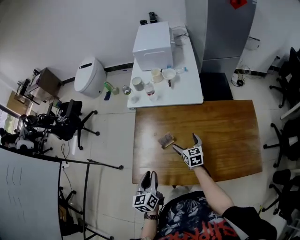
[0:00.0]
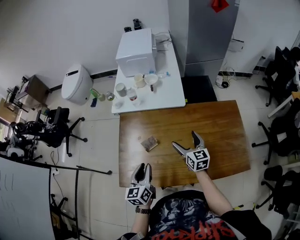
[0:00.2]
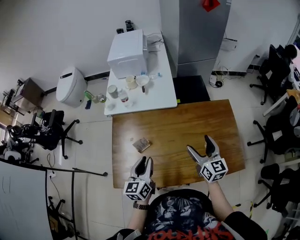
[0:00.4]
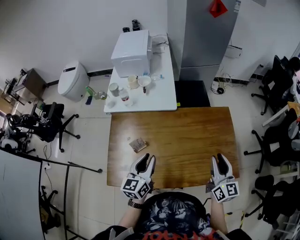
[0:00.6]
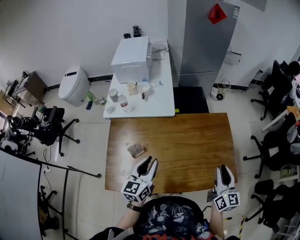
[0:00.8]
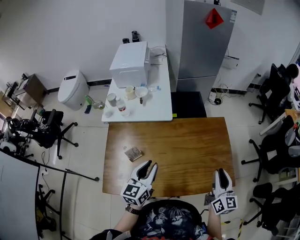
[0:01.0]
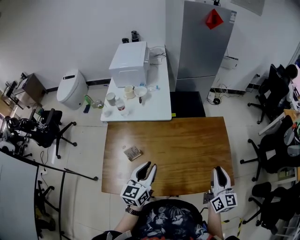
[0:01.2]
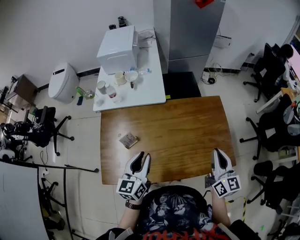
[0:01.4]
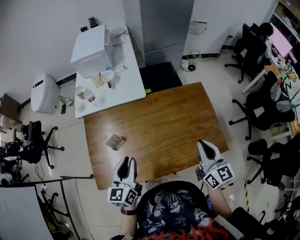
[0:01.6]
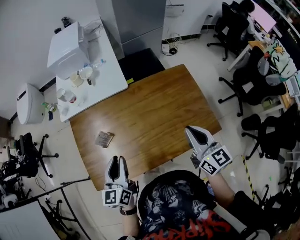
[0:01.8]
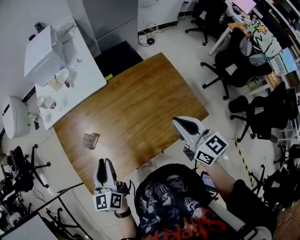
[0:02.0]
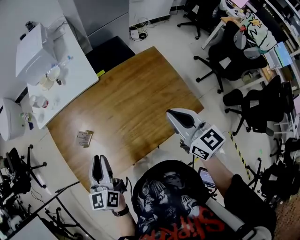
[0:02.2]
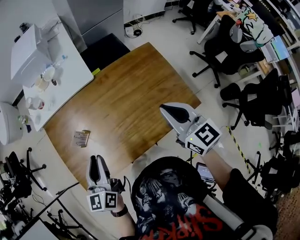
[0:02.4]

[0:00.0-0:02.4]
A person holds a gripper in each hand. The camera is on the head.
0:00.0 to 0:01.2: The left gripper shifts by approximately 25 cm, and rotates about 30 degrees; the right gripper shifts by some 40 cm, swivels about 40 degrees, and closes up.
0:01.2 to 0:02.4: There are only small adjustments of the grippers.

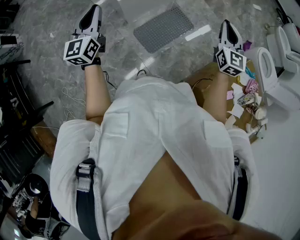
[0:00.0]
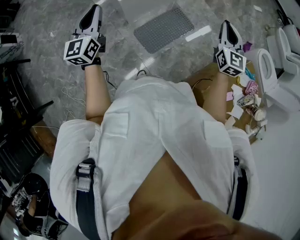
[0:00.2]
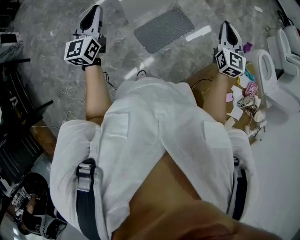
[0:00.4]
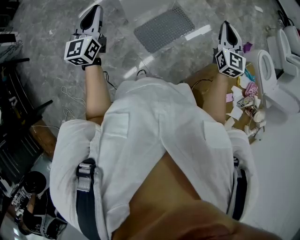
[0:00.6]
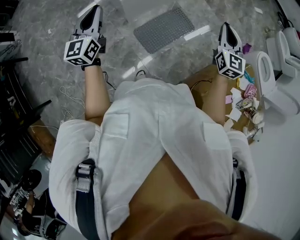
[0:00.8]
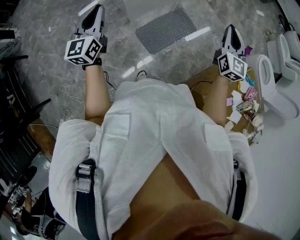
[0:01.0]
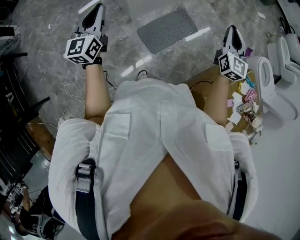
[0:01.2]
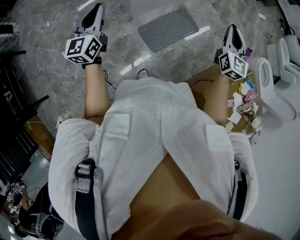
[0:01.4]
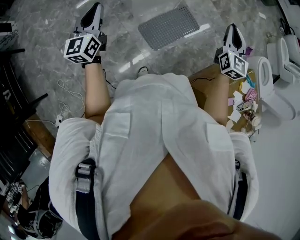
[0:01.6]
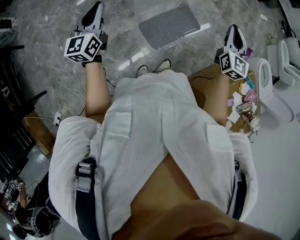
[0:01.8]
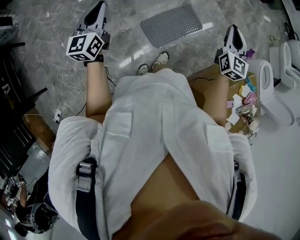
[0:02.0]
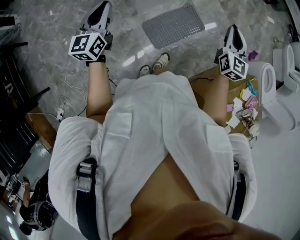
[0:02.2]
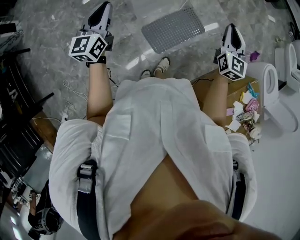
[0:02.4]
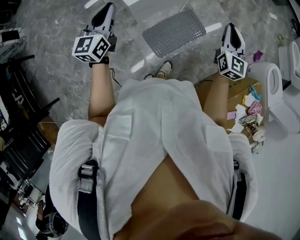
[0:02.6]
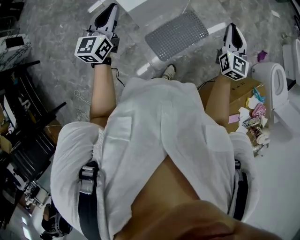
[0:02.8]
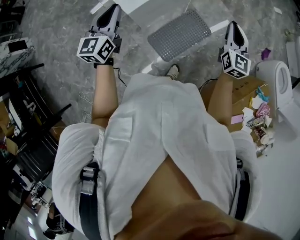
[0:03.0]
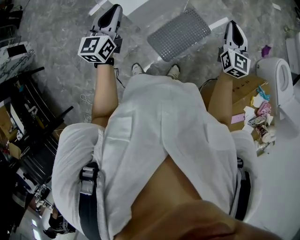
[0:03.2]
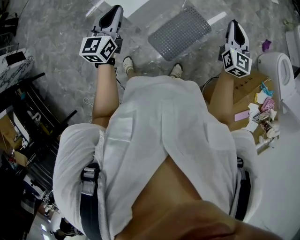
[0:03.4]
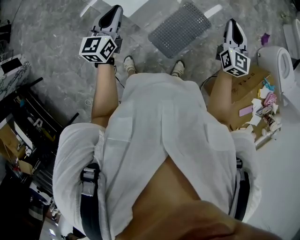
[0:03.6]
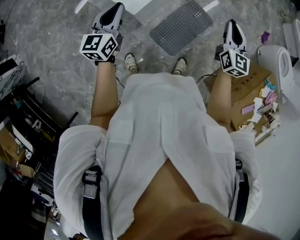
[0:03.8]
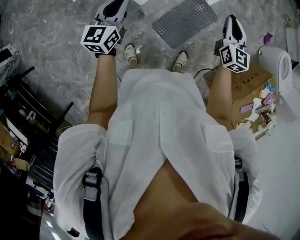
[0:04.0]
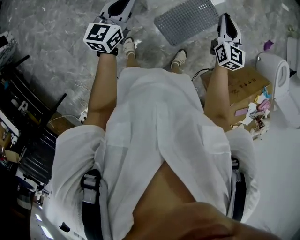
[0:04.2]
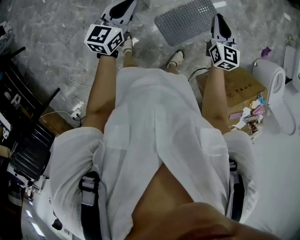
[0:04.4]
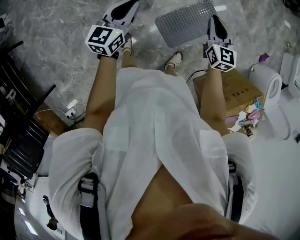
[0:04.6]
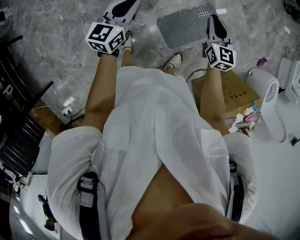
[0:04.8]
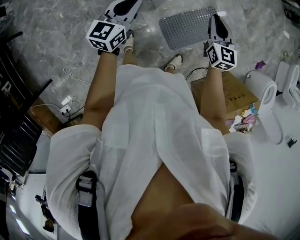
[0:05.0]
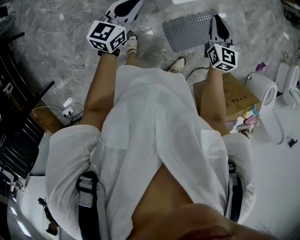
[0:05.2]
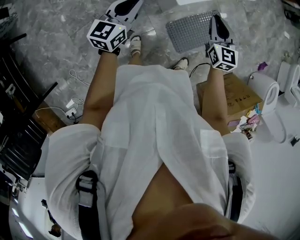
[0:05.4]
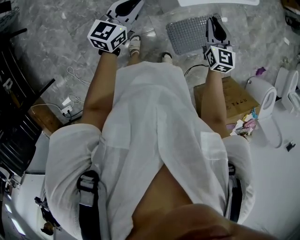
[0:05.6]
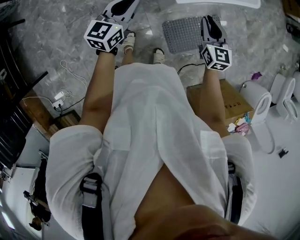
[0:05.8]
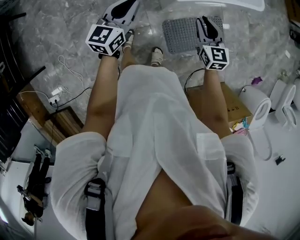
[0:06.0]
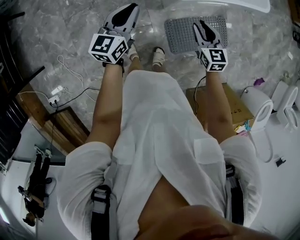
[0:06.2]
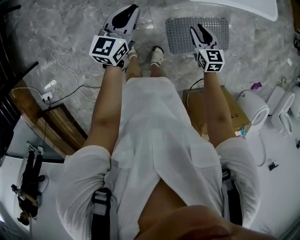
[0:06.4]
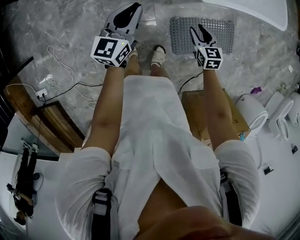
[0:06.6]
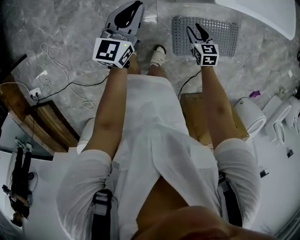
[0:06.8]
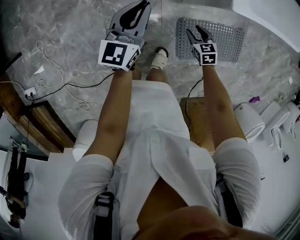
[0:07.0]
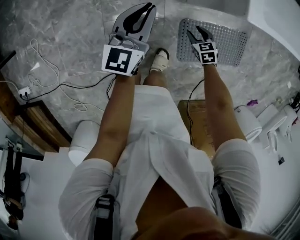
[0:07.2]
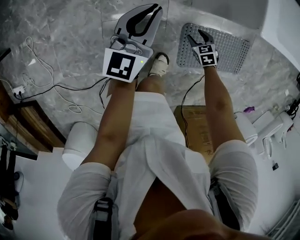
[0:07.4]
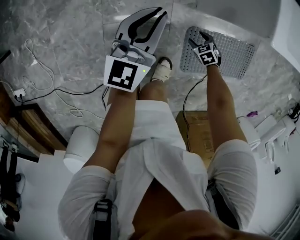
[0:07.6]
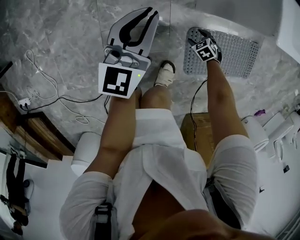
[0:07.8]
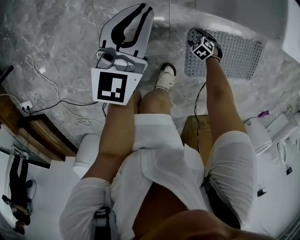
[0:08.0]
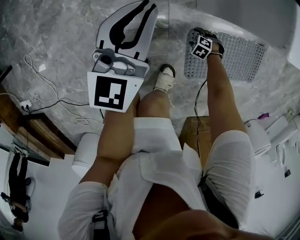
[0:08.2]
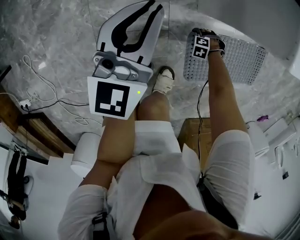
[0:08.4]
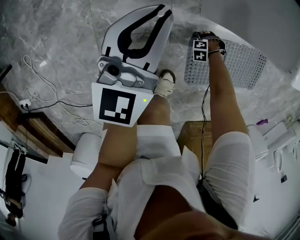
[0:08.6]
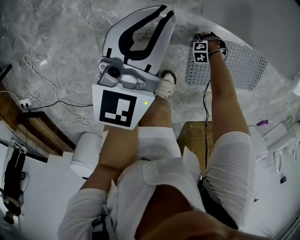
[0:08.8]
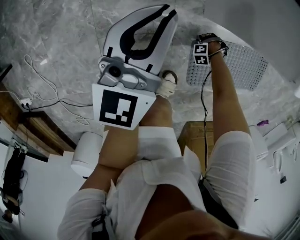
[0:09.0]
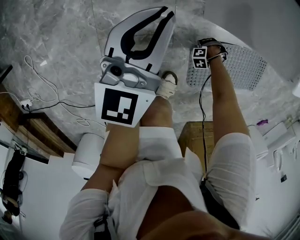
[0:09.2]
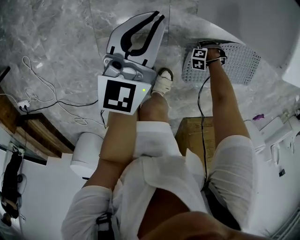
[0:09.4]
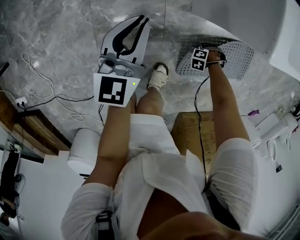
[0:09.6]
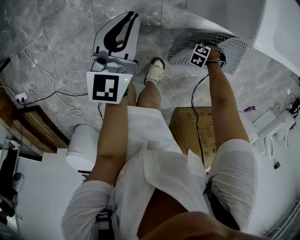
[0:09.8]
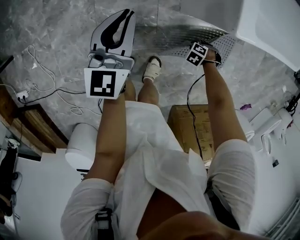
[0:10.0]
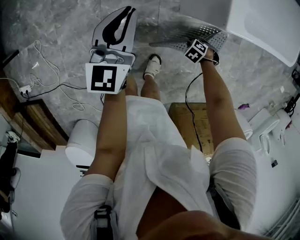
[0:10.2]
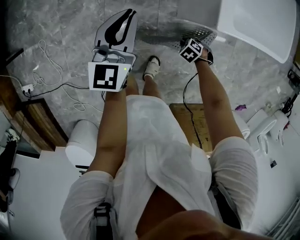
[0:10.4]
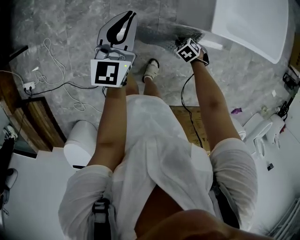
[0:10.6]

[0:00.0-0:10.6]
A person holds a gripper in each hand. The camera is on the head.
0:00.0 to 0:01.6: Both grippers move to the left, some 10 cm.
0:01.6 to 0:03.0: The two grippers go approximately 20 cm forward and to the right.
0:03.0 to 0:04.6: Both grippers travel together to the left and downward, roughly 30 cm. The right gripper swivels roughly 20 degrees.
0:04.6 to 0:06.0: The two grippers go approximately 10 cm to the left. The right gripper rotates approximately 20 degrees.
0:06.0 to 0:07.6: The right gripper travels downward by some 70 cm, tilts its fingers roughly 50 degrees downward, and opens up. The left gripper moves downward, approximately 40 cm.
0:07.6 to 0:09.0: The right gripper heads downward, covering roughly 20 cm, and rotates around the line of its fingers by approximately 70 degrees, counterclockwise from behind; the left gripper moves approximately 10 cm.
0:09.0 to 0:10.6: The left gripper moves upward, roughly 30 cm; the right gripper moves upward, some 50 cm, rotates around the line of its fingers by some 50 degrees, clockwise from behind, and closes up.

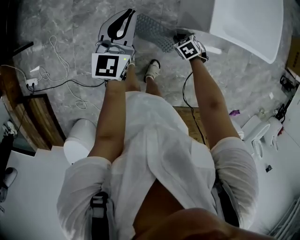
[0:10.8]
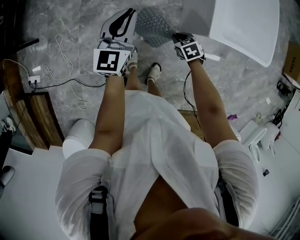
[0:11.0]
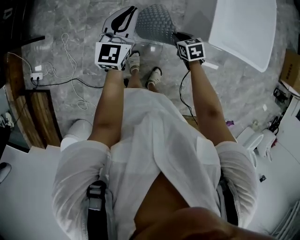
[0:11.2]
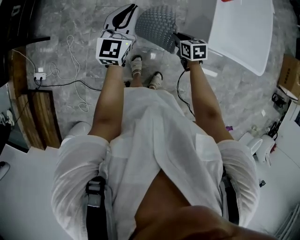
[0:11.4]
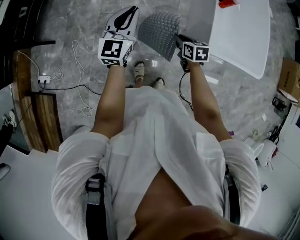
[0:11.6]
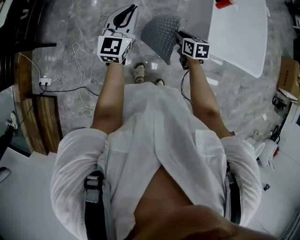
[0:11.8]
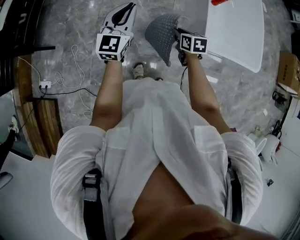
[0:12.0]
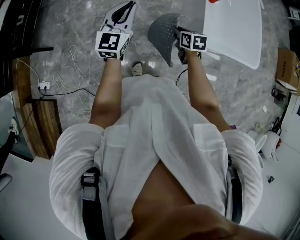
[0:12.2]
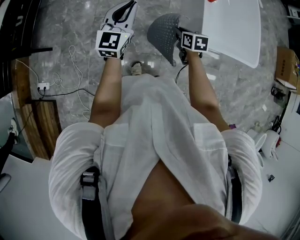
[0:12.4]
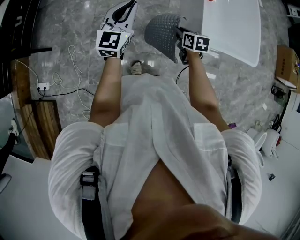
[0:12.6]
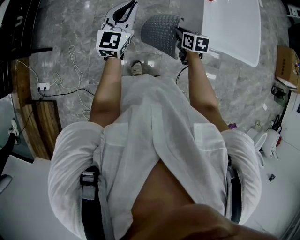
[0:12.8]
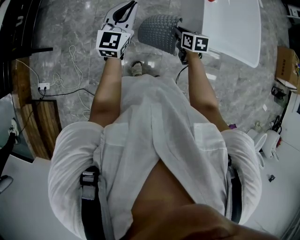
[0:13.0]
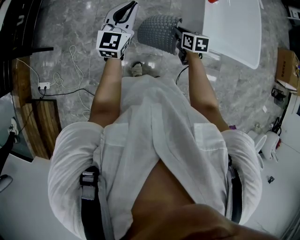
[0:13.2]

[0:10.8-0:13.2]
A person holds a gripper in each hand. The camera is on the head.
0:10.8 to 0:12.0: Both grippers travel together upward, approximately 25 cm. The right gripper turns by approximately 40 degrees.
0:12.0 to 0:13.2: The grippers stay close to where they were, moving slightly.

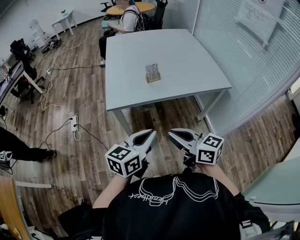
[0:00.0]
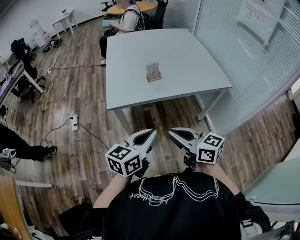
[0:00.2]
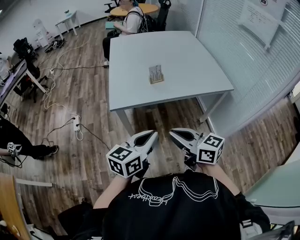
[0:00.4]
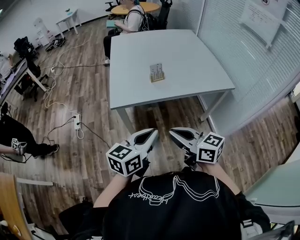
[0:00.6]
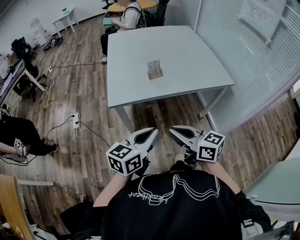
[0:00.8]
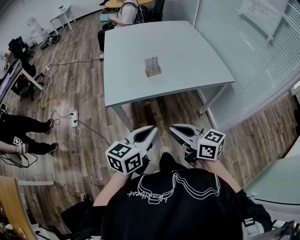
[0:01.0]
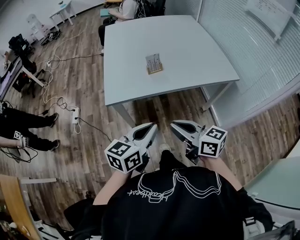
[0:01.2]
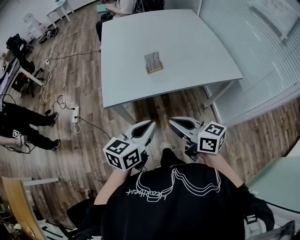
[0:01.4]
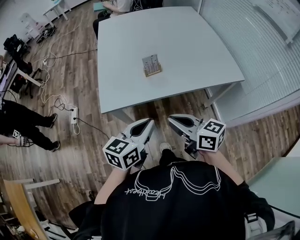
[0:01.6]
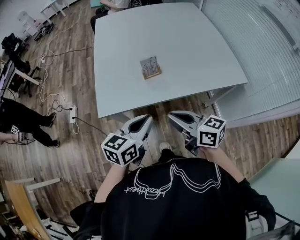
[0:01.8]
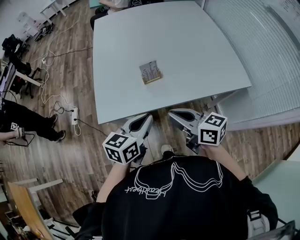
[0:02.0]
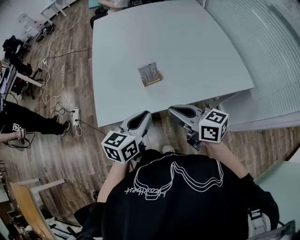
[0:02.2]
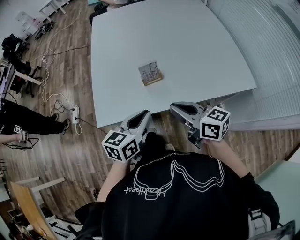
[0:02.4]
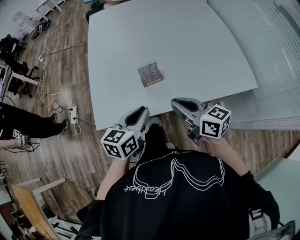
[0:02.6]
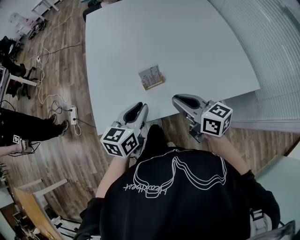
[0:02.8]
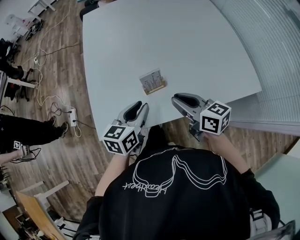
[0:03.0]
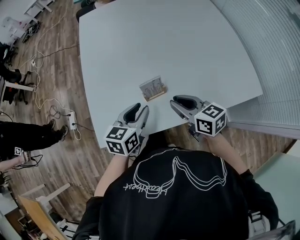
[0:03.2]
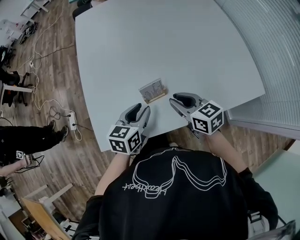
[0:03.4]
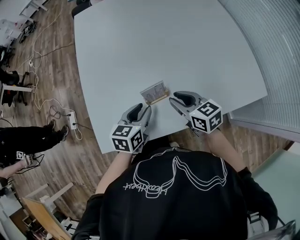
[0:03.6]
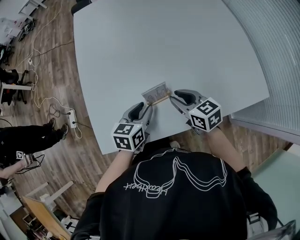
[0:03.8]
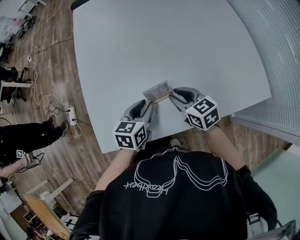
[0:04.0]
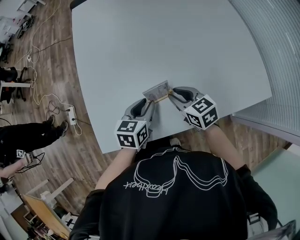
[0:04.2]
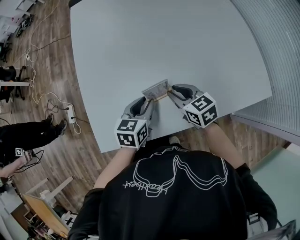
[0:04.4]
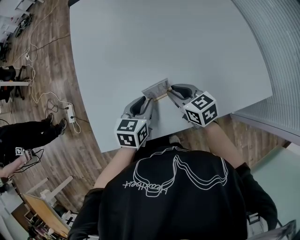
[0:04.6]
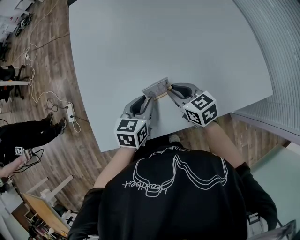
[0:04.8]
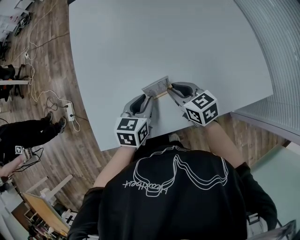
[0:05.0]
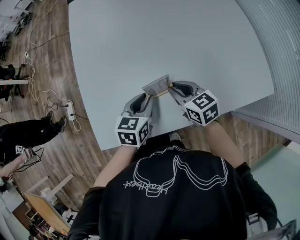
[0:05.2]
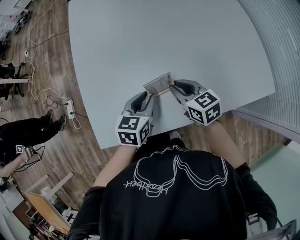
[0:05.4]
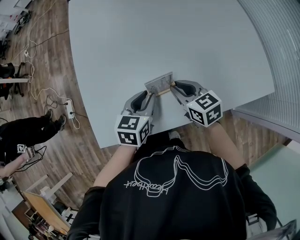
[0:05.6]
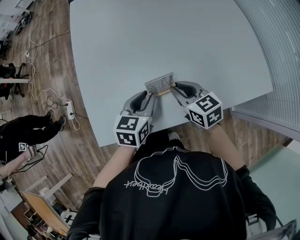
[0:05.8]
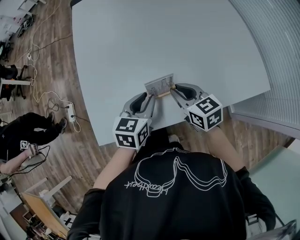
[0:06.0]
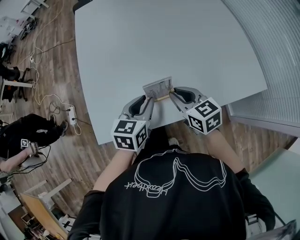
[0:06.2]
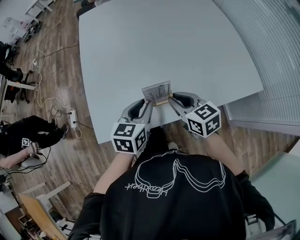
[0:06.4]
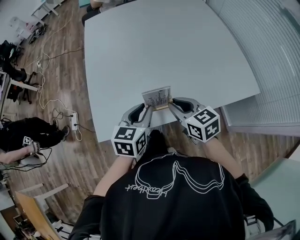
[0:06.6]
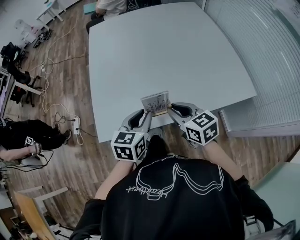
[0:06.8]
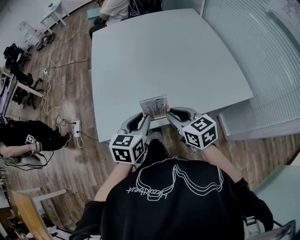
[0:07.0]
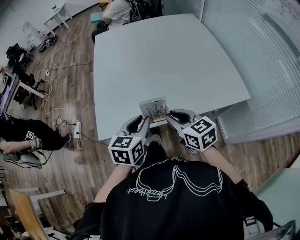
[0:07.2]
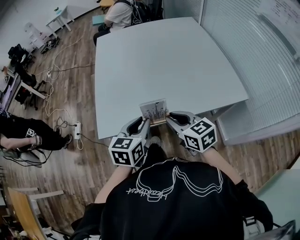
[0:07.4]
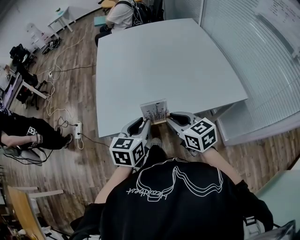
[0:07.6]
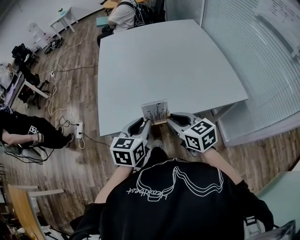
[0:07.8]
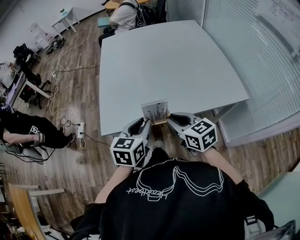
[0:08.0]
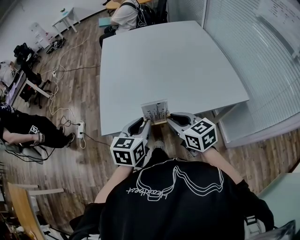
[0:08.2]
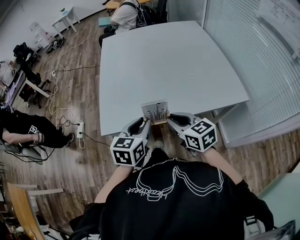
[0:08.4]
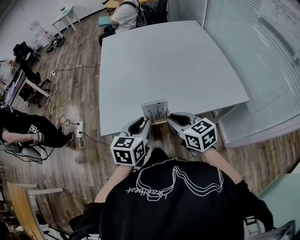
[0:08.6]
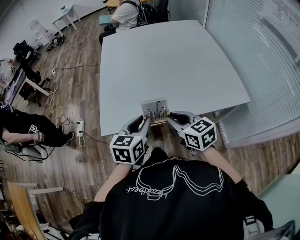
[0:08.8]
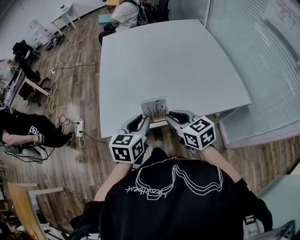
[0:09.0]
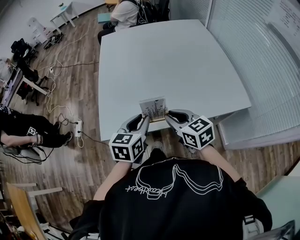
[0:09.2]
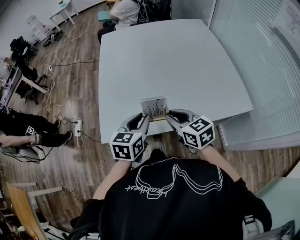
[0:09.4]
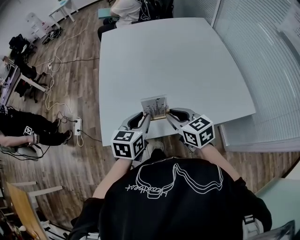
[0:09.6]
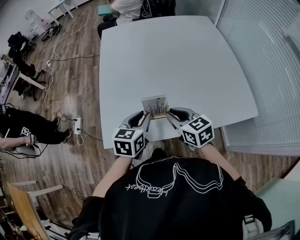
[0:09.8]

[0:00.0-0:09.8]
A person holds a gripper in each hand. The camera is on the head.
0:00.0 to 0:01.4: Both grippers move forward, some 10 cm.
0:01.4 to 0:02.8: Both grippers travel together forward, about 25 cm.
0:02.8 to 0:04.2: Both grippers move forward and downward, about 20 cm. The right gripper swivels about 30 degrees.
0:04.2 to 0:05.6: The two grippers keep their place.
0:05.6 to 0:07.0: The two grippers go about 20 cm backward and upward.
0:07.0 to 0:08.4: Both grippers move backward, about 5 cm.
0:08.4 to 0:09.8: The grippers both shift forward by some 15 cm.
